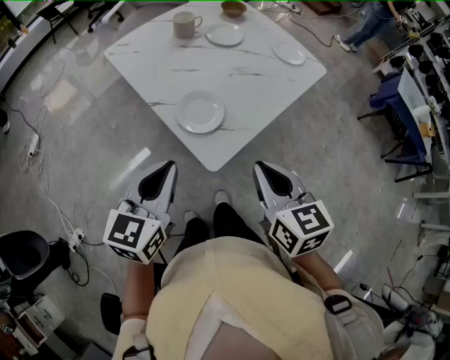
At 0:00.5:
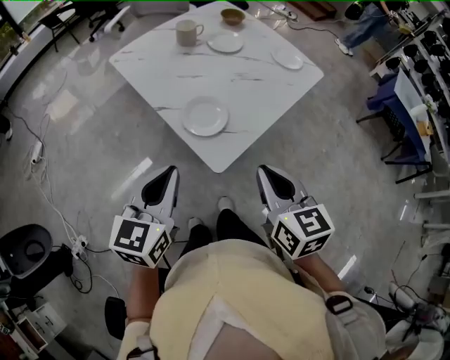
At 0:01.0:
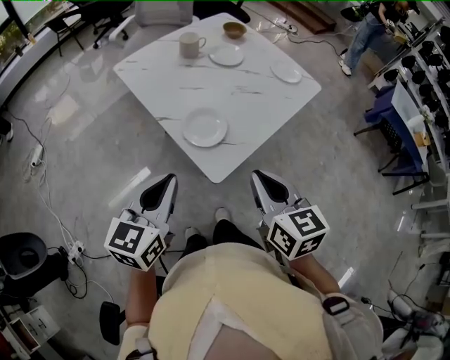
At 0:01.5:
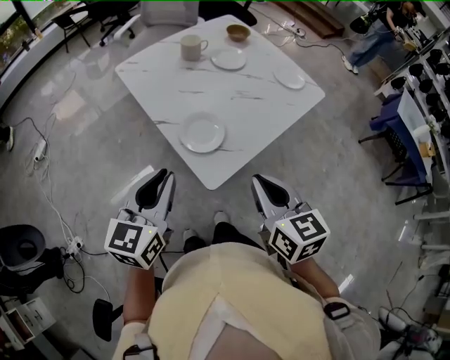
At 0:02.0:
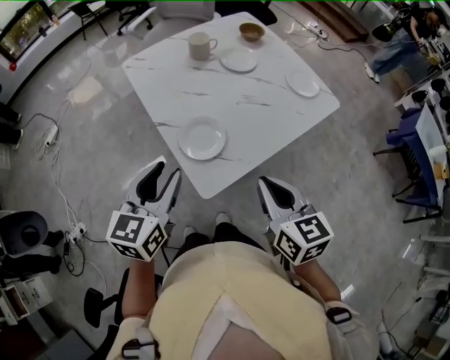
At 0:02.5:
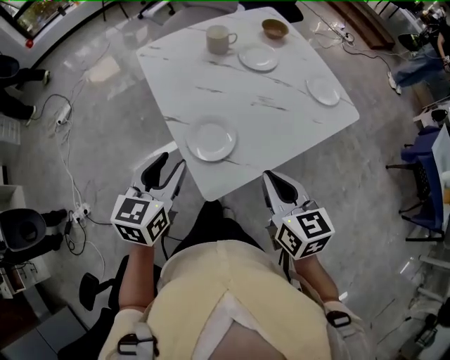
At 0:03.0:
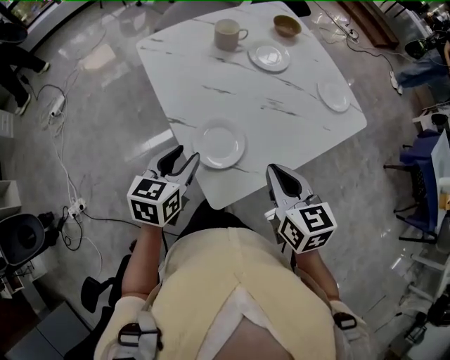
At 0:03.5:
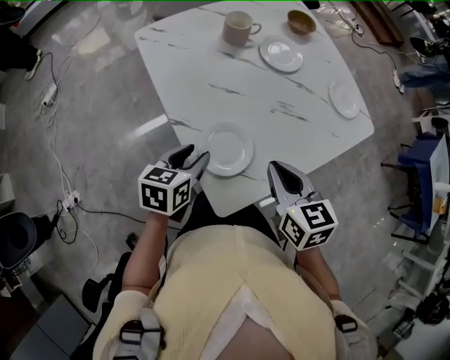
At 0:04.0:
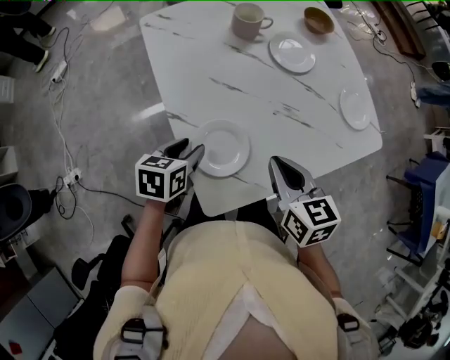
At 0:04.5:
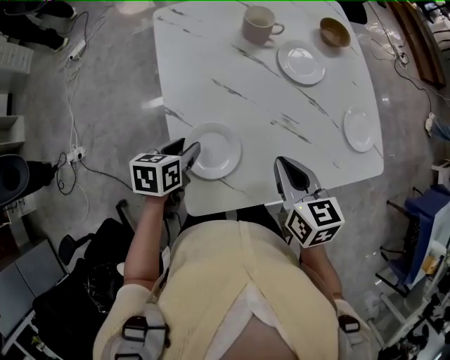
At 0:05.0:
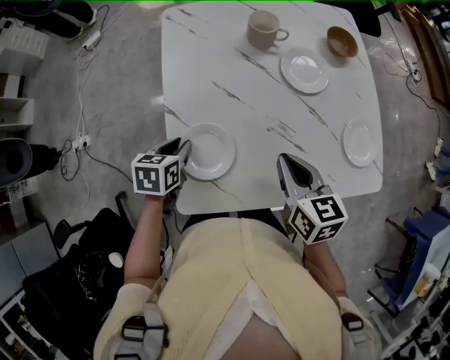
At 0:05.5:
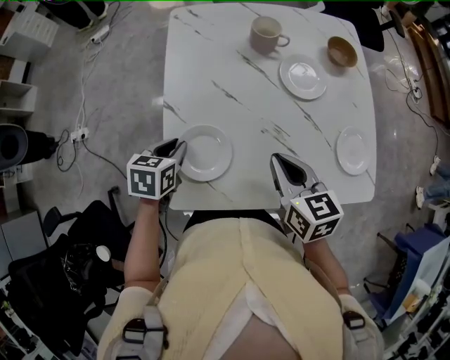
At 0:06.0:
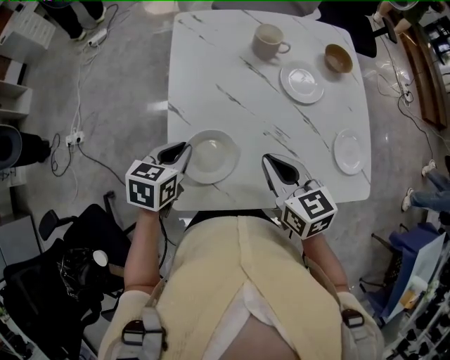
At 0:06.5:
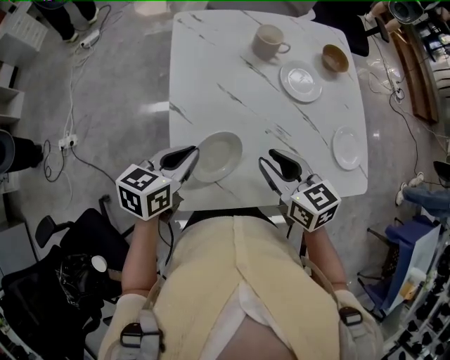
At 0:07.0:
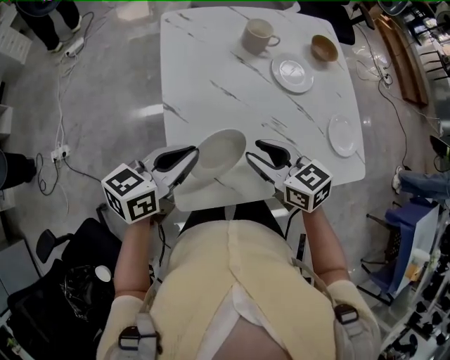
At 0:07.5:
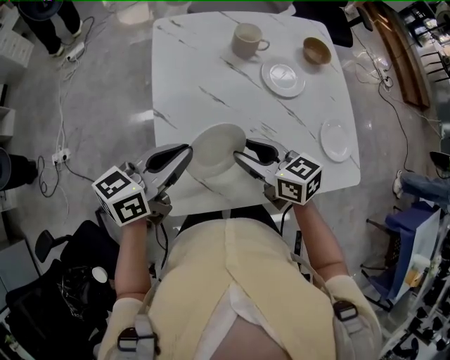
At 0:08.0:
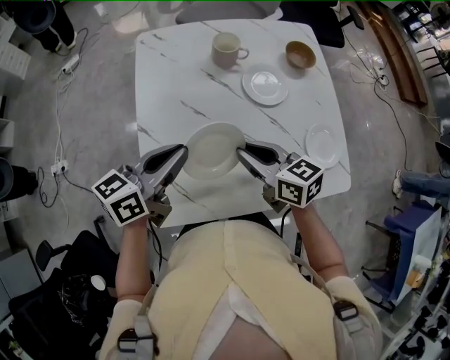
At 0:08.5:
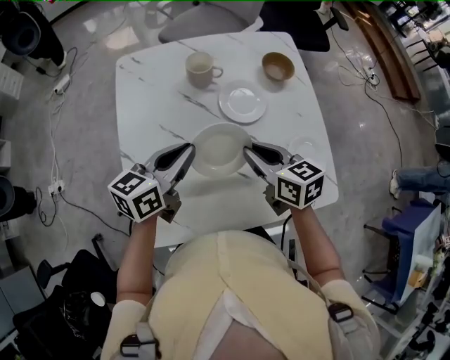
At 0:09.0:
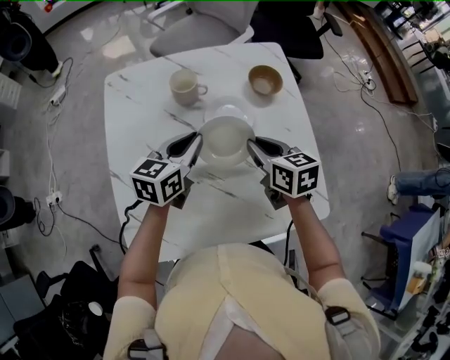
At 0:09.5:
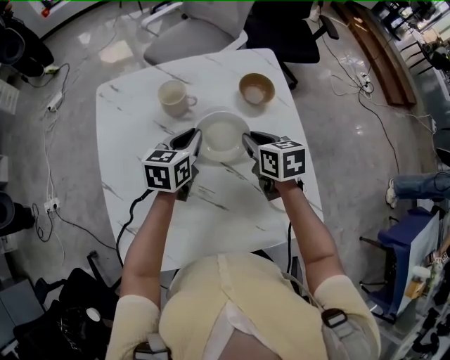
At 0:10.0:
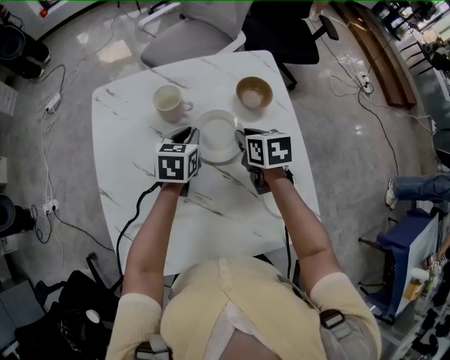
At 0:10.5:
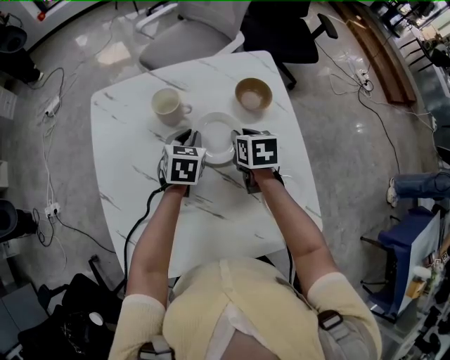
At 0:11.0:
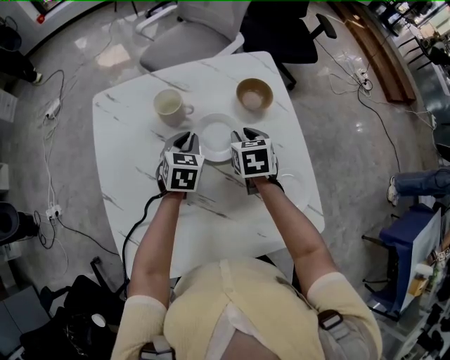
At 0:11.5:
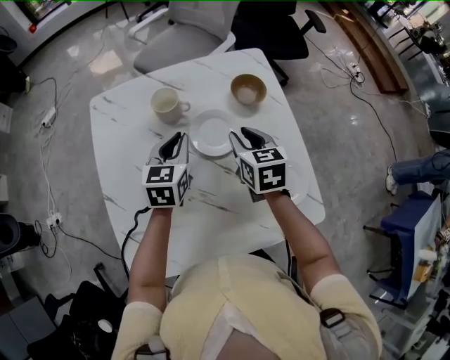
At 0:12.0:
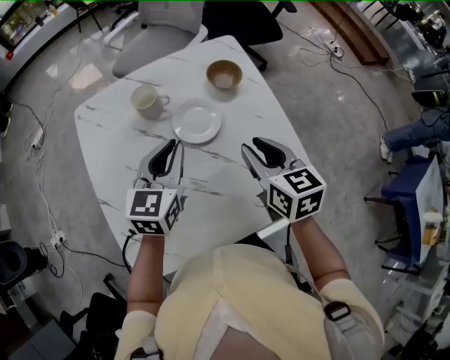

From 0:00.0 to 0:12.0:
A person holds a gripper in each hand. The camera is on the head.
From 0:00.0 to 0:02.0: Both grippers travel together forward, some 5 cm. The left gripper opens up.
From 0:02.0 to 0:04.0: The left gripper is displaced downward and forward by approximately 25 cm, and tips its fingers downward by about 30 degrees, while the right gripper goes roughly 20 cm forward and downward.
From 0:04.0 to 0:06.0: The left gripper ends up about 5 cm from where it was, and closes up. Meanwhile the right gripper turns by about 30 degrees.
From 0:06.0 to 0:08.0: The right gripper opens and closes again. Meanwhile the left gripper goes some 15 cm upward and to the right, and tips its fingers upward by roughly 30 degrees.
From 0:08.0 to 0:10.0: The right gripper travels forward and to the right by some 30 cm, and changes its angle by some 30 degrees, while the left gripper shifts roughly 30 cm forward, to the right and downward, and turns by about 40 degrees.
From 0:10.0 to 0:12.0: The left gripper is displaced upward and backward by roughly 15 cm, and changes its angle by approximately 20 degrees, while the right gripper goes approximately 20 cm backward and upward, and turns by about 20 degrees.

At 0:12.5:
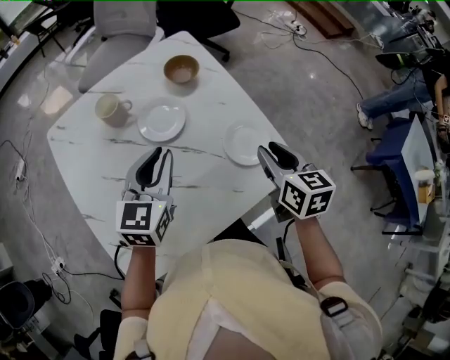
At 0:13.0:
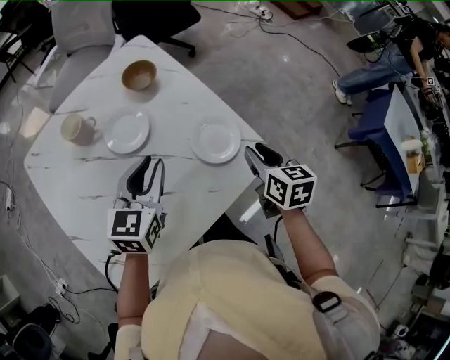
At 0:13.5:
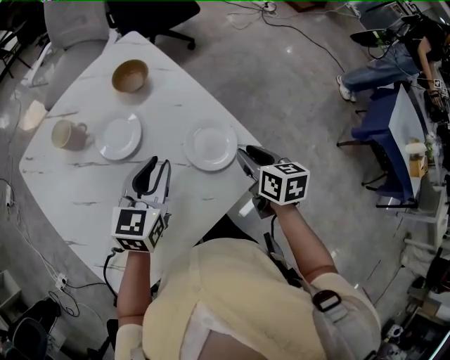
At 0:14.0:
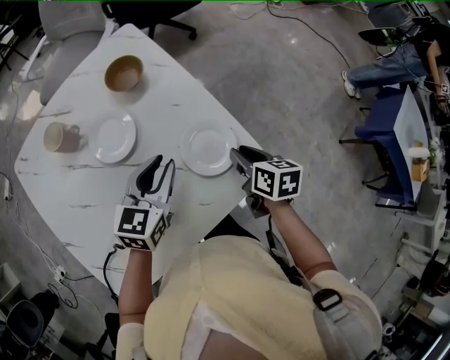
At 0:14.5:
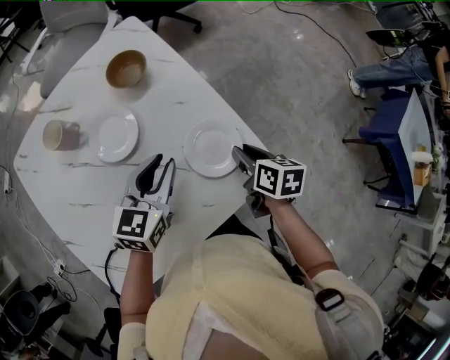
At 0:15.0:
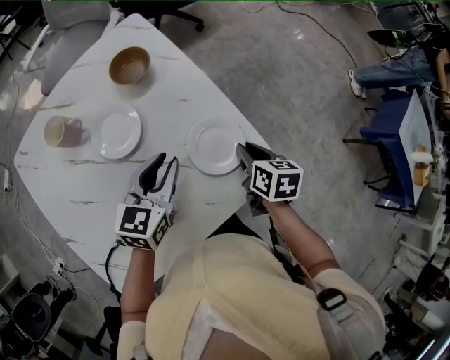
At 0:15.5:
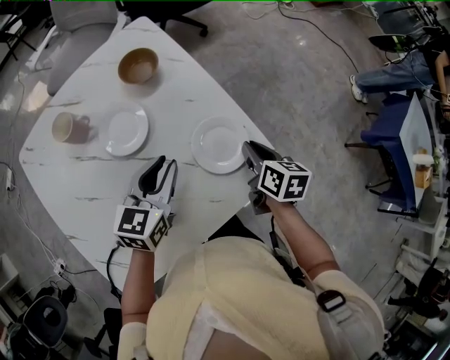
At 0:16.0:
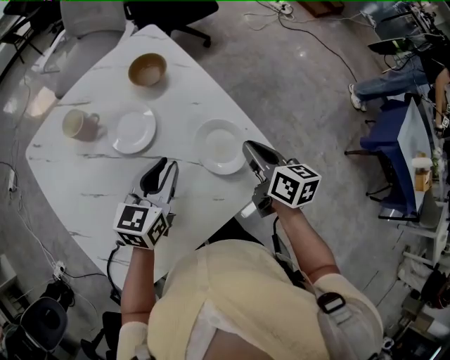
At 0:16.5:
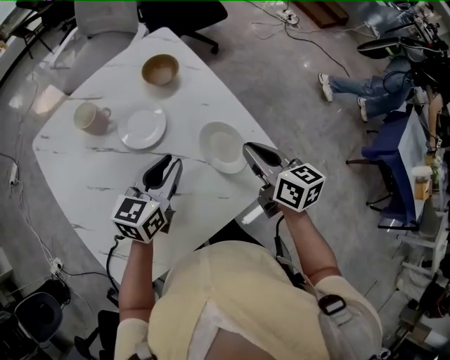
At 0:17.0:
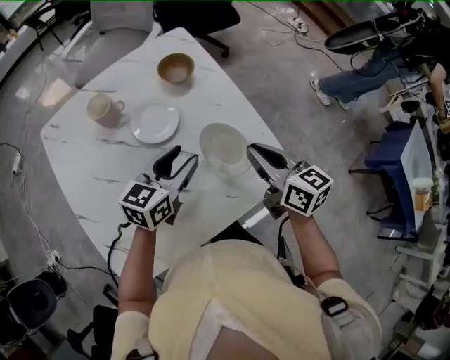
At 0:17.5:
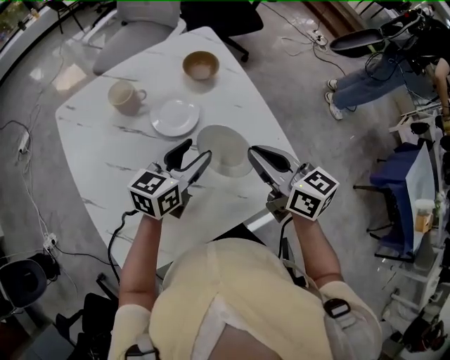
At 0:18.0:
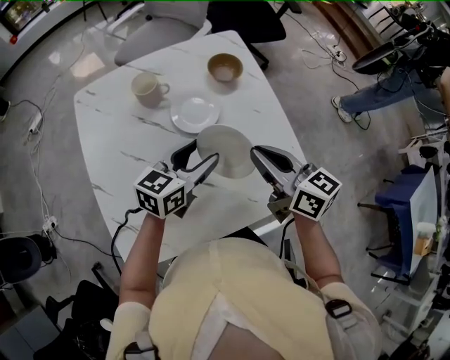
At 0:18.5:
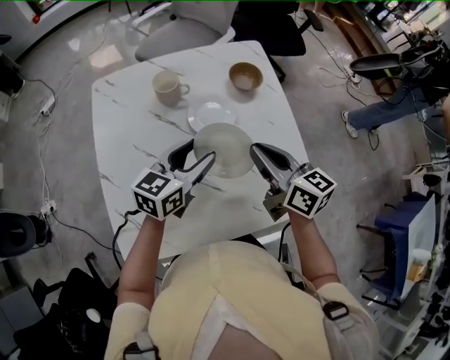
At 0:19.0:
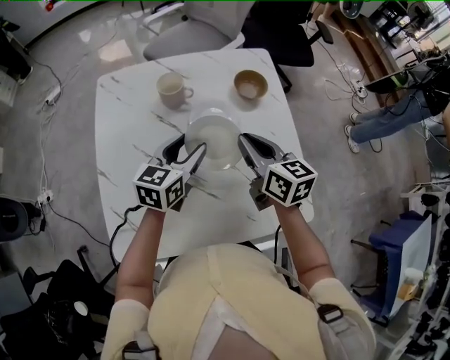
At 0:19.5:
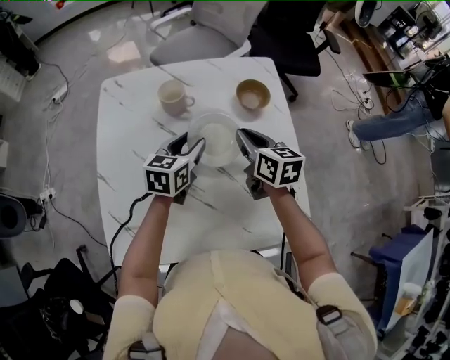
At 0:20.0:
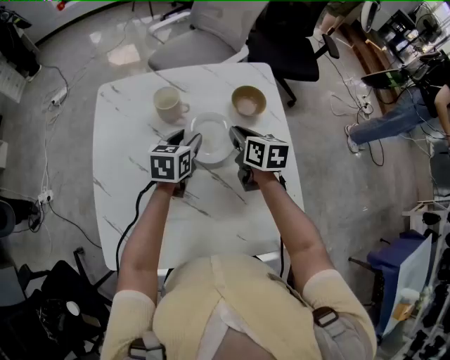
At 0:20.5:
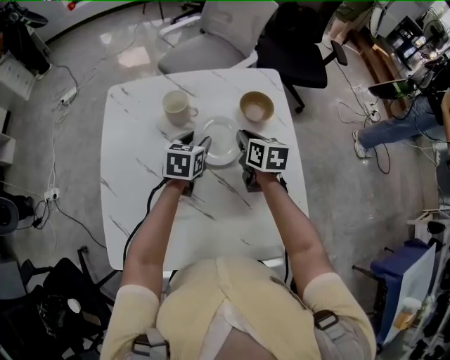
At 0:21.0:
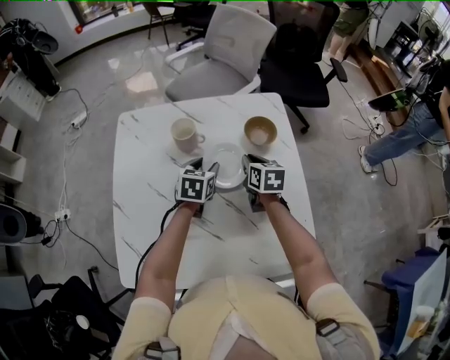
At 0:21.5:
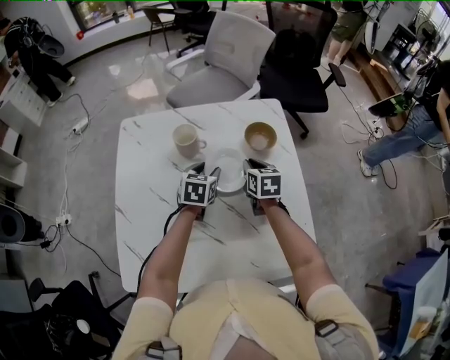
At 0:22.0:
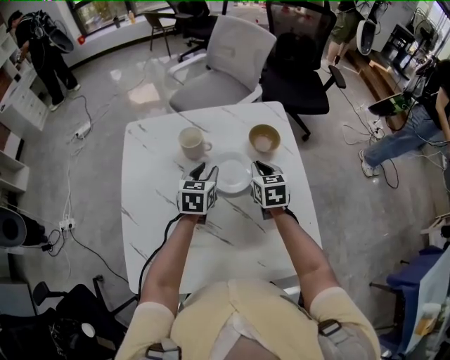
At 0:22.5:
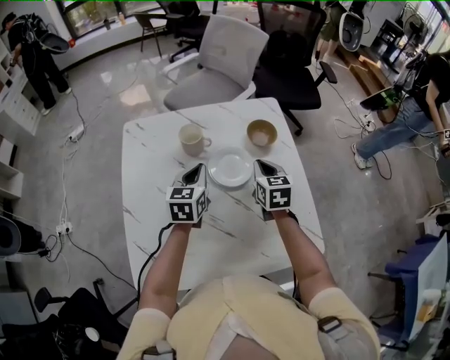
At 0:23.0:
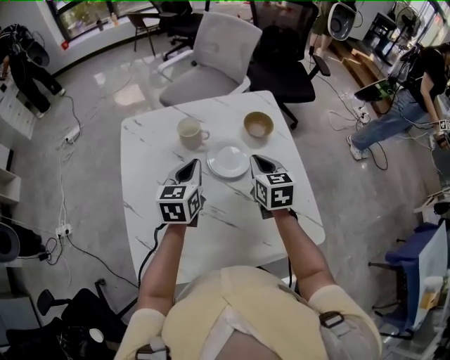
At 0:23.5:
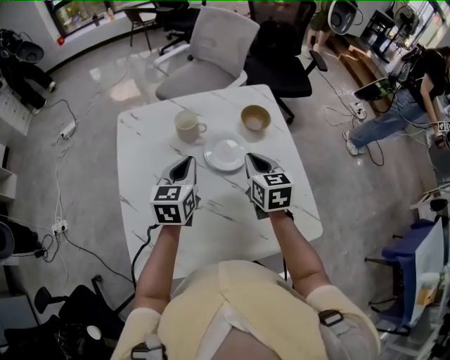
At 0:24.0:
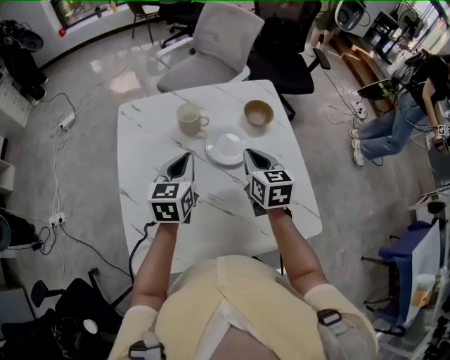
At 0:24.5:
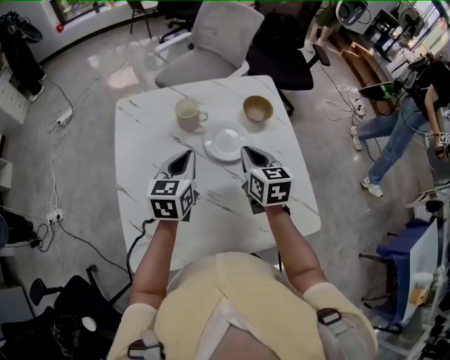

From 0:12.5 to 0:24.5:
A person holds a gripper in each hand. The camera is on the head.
From 0:12.5 to 0:14.5: The right gripper moves downward and to the right, roughly 15 cm, and swivels approximately 30 degrees. The left gripper heads to the right, downward and forward, covering about 15 cm.
From 0:14.5 to 0:16.5: The right gripper goes about 10 cm upward and to the left, swivels some 30 degrees, and closes up. Meanwhile the left gripper changes place by about 5 cm.
From 0:16.5 to 0:18.5: The left gripper is displaced to the left by about 10 cm, and opens its fingers, while the right gripper moves to the left, roughly 15 cm, and rotates roughly 30 degrees.
From 0:18.5 to 0:20.5: The two grippers go approximately 20 cm forward and downward. The right gripper swivels approximately 20 degrees. Meanwhile the left gripper rotates some 30 degrees.
From 0:20.5 to 0:22.5: The left gripper moves upward, about 5 cm, and closes its fingers. The right gripper ends up about 5 cm from where it was, and rotates about 20 degrees.
From 0:22.5 to 0:24.5: The two grippers go approximately 5 cm backward.

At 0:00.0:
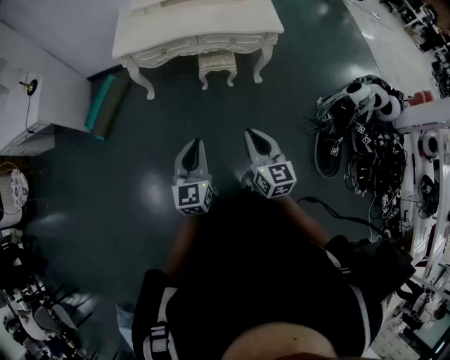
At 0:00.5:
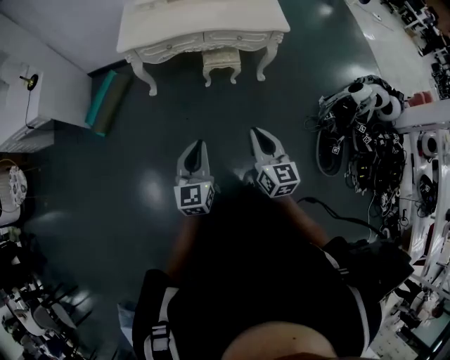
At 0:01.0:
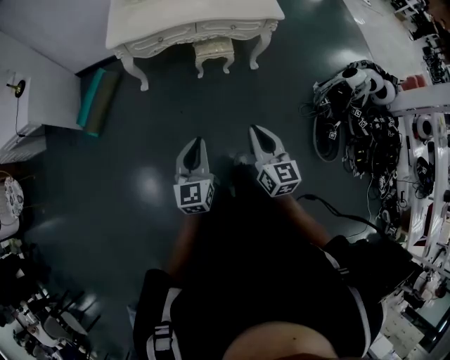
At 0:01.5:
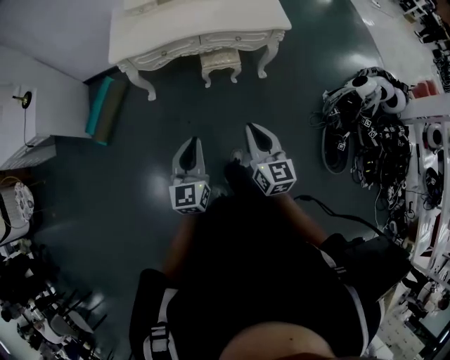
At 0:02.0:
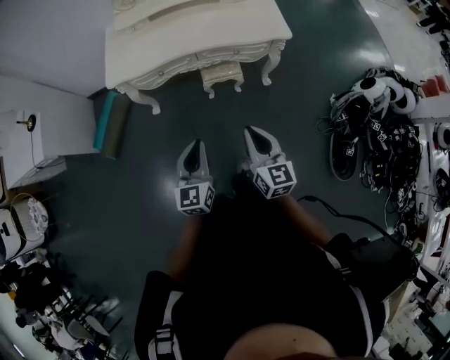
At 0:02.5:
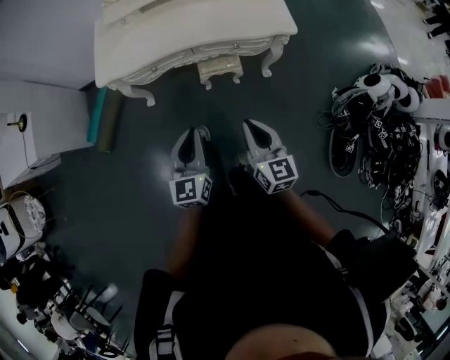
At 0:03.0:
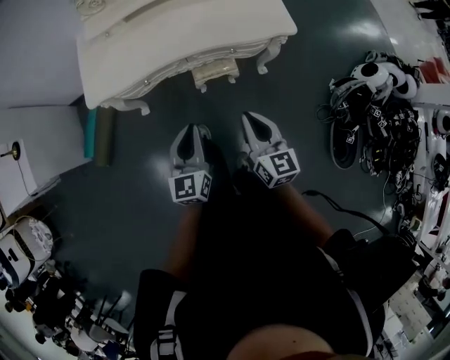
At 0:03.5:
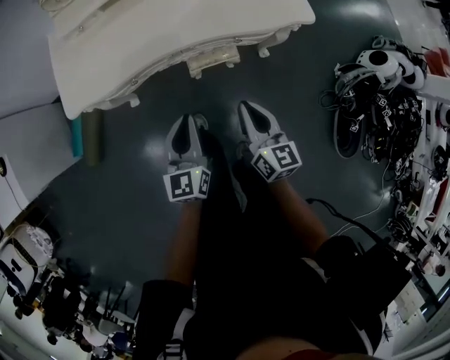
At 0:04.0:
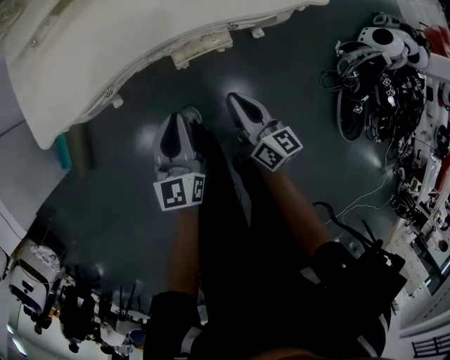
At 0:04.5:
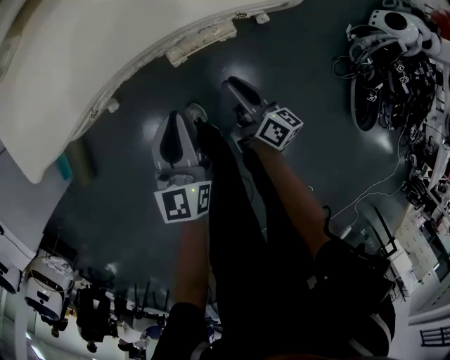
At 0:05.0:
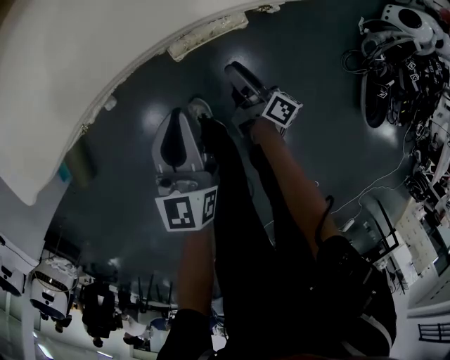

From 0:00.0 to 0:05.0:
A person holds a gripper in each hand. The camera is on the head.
From 0:00.0 to 0:02.5: The two grippers go some 25 cm forward.
From 0:02.5 to 0:05.0: The two grippers go some 50 cm downward and forward. The right gripper rolls clockwise, seen from behind, by about 60 degrees, and opens its fingers.
